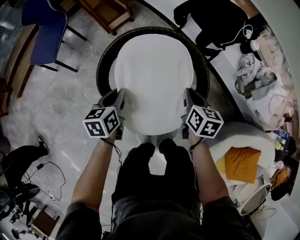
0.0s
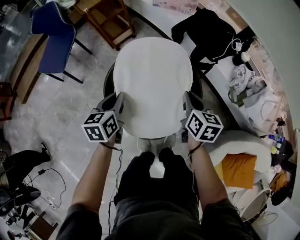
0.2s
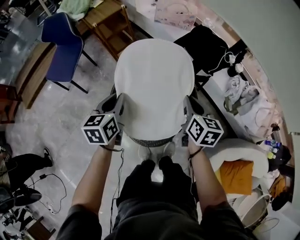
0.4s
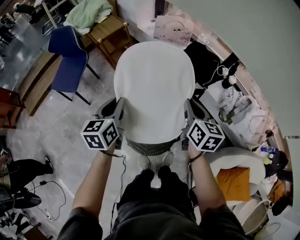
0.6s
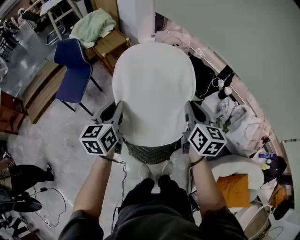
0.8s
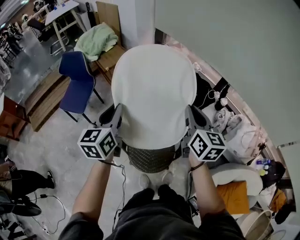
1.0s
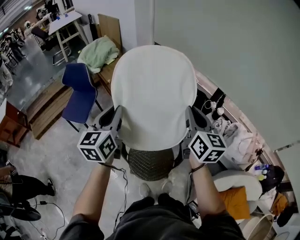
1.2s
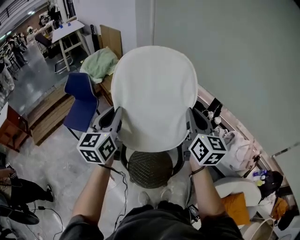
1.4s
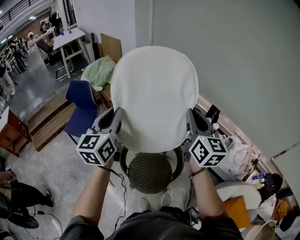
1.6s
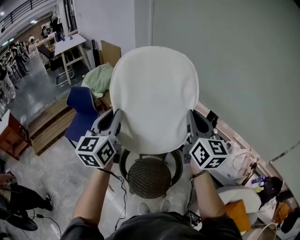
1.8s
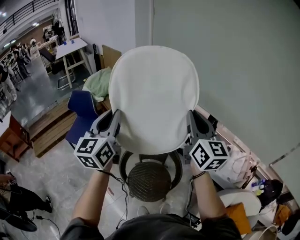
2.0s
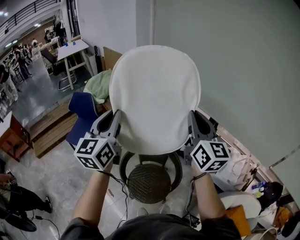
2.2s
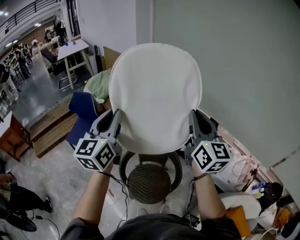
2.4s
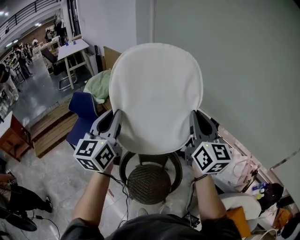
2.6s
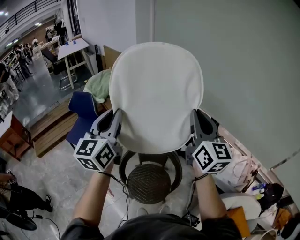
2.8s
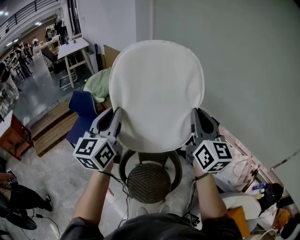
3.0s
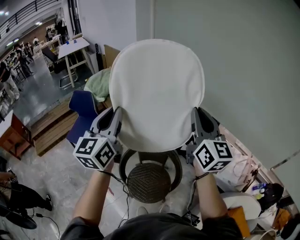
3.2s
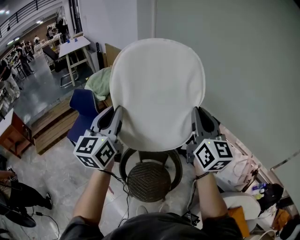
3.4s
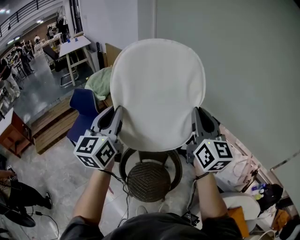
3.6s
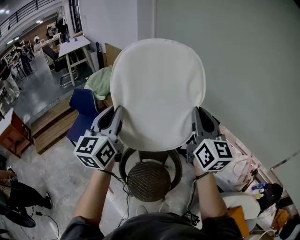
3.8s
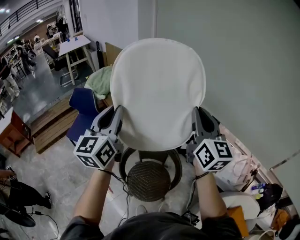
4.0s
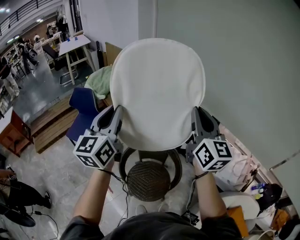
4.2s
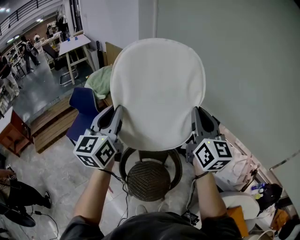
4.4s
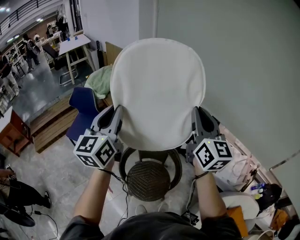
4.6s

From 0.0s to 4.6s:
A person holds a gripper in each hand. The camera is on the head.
From 0.0s to 1.6s: Both grippers travel together upward, some 60 cm. The left gripper tilts its fingers approximately 40 degrees upward. The right gripper angles its fingers upward, by approximately 40 degrees.
From 1.6s to 3.0s: The grippers both shift upward by some 10 cm.
From 3.0s to 4.6s: Both grippers stay about where they are.

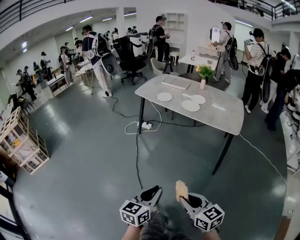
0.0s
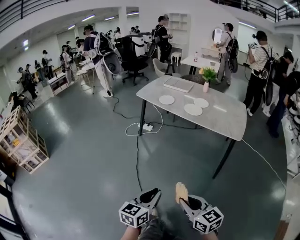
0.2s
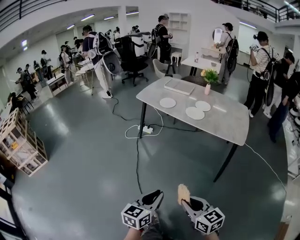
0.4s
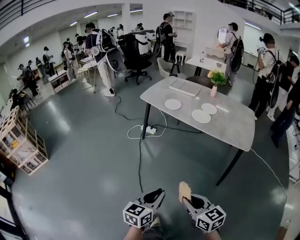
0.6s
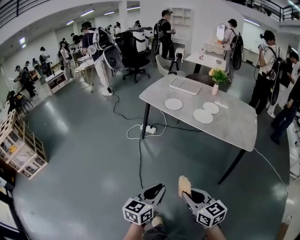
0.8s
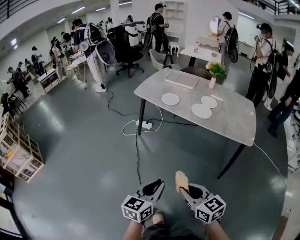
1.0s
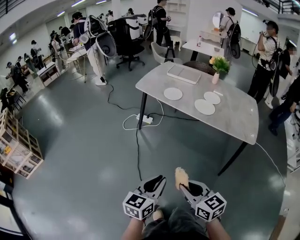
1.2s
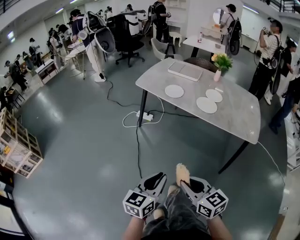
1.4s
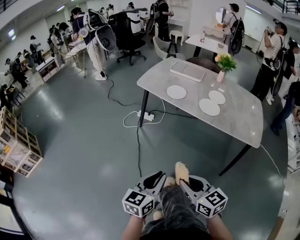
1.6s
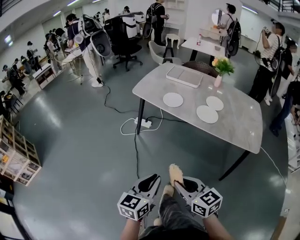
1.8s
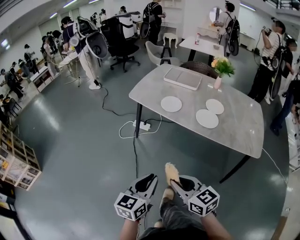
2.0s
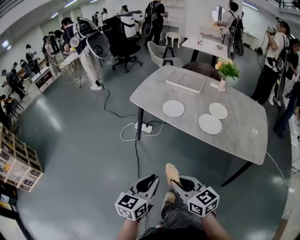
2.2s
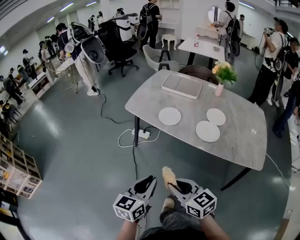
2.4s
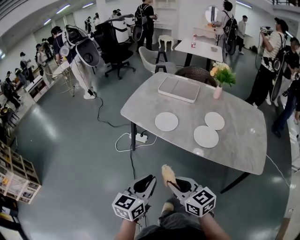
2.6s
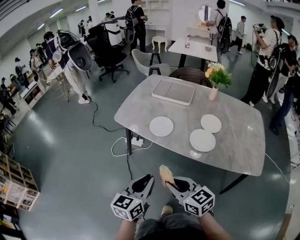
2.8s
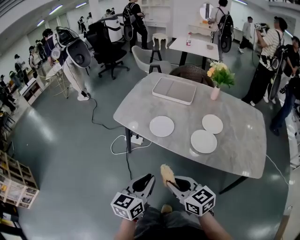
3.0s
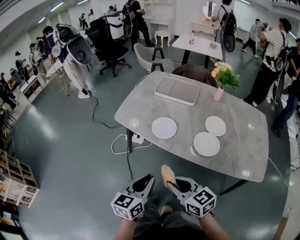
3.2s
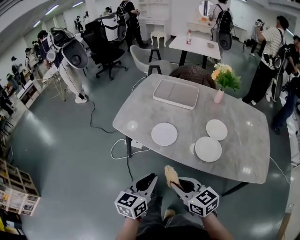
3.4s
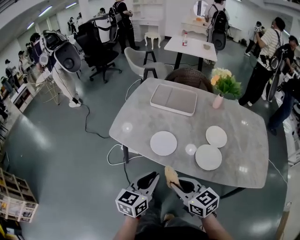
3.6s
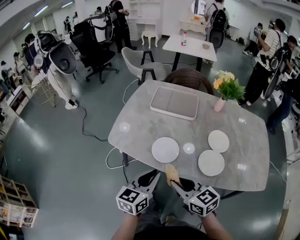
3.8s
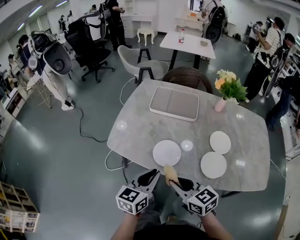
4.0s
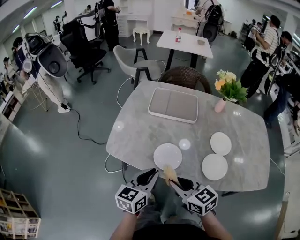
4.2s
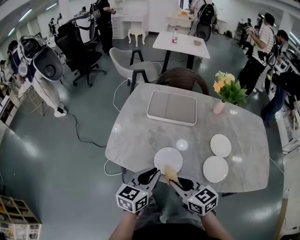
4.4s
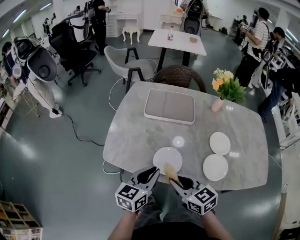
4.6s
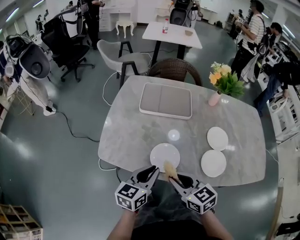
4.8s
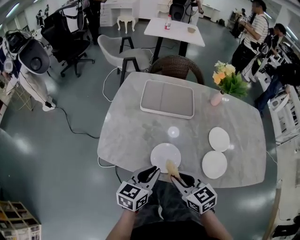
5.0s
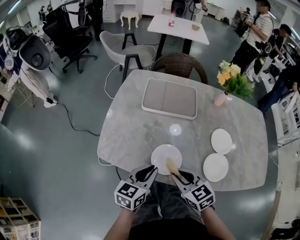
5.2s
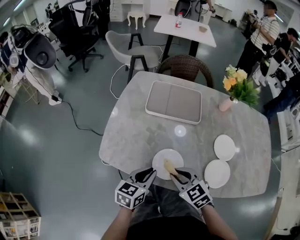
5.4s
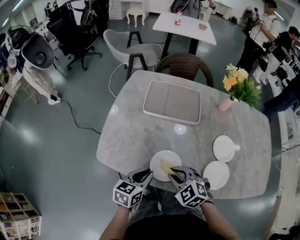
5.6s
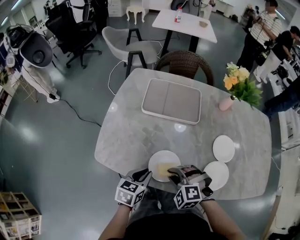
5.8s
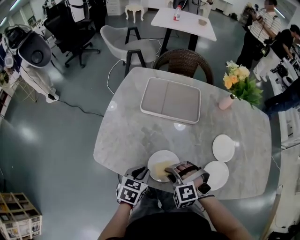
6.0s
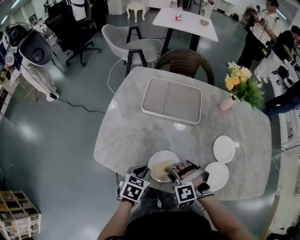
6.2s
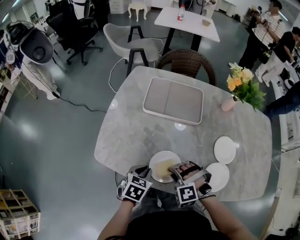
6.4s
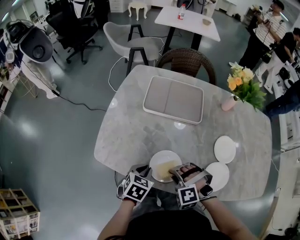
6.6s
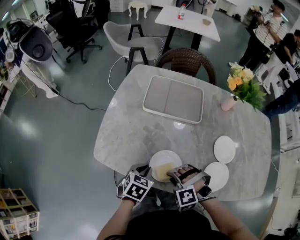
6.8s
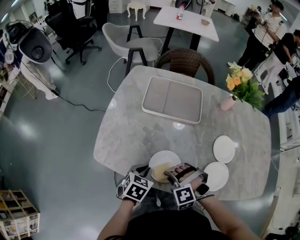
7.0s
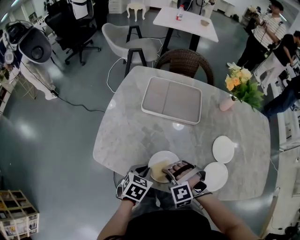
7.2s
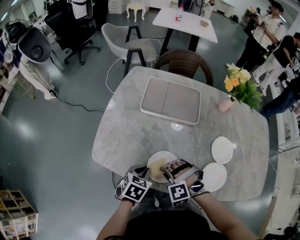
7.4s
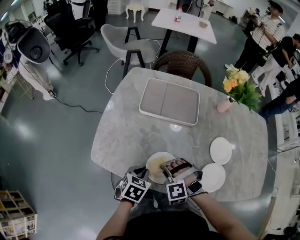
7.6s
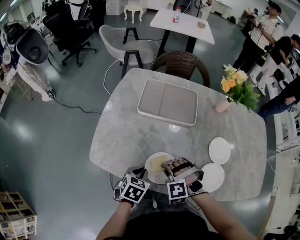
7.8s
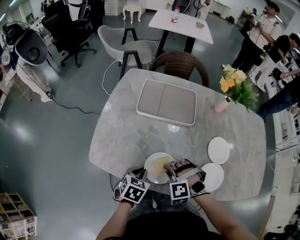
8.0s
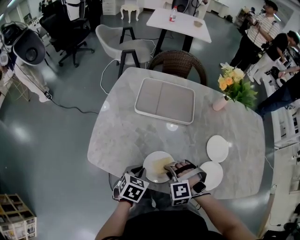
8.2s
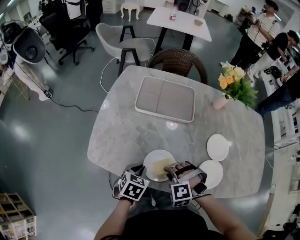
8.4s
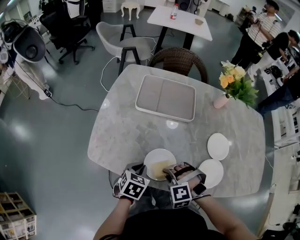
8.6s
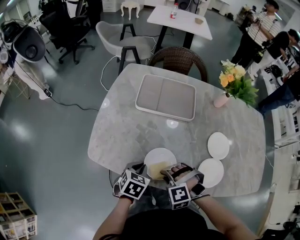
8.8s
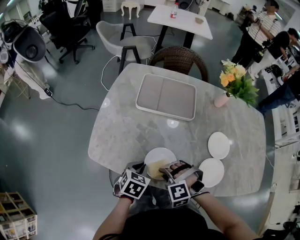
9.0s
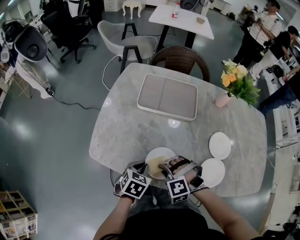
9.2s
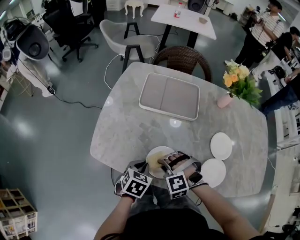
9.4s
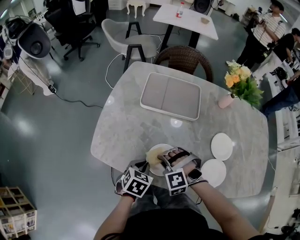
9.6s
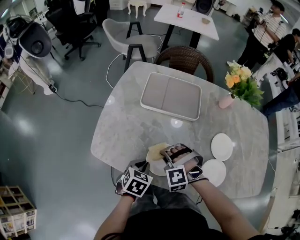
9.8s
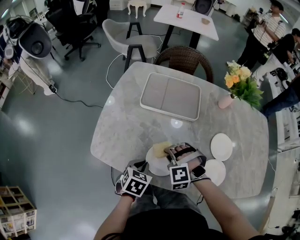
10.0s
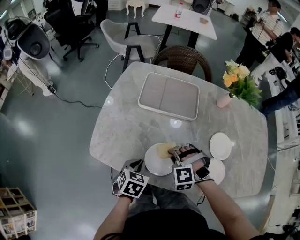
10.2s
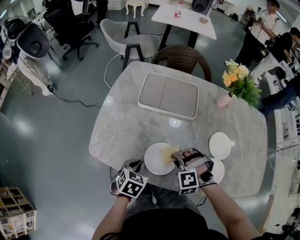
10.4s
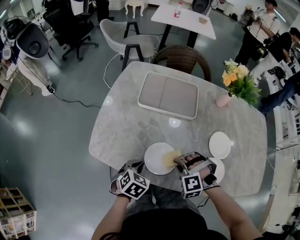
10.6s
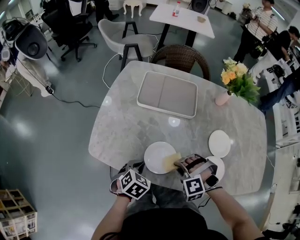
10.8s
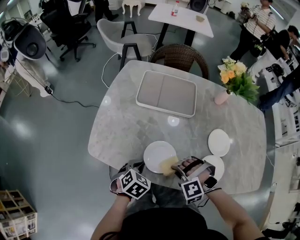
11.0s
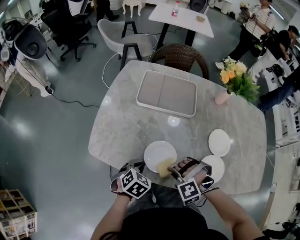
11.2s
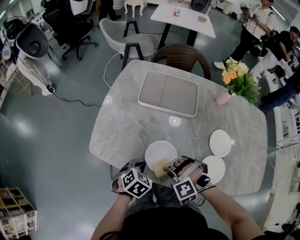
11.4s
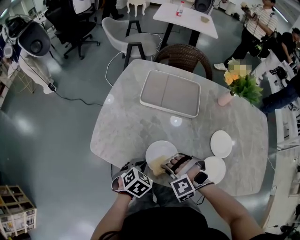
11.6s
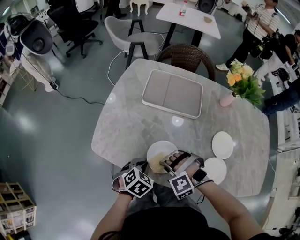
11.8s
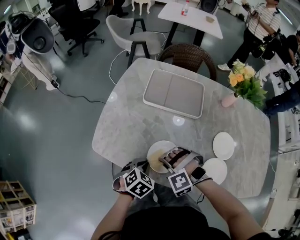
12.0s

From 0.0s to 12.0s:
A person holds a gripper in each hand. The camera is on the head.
From 0.0s to 1.6s: Both grippers travel together forward, roughly 30 cm.
From 1.6s to 3.0s: Both grippers move forward, roughly 30 cm.
From 3.0s to 4.4s: Both grippers move forward, roughly 25 cm.
From 4.4s to 6.0s: The two grippers go some 15 cm downward and forward. The right gripper rotates around the line of its fingers by approximately 70 degrees, counterclockwise from behind; the left gripper points its fingers about 30 degrees further downward.
From 6.0s to 9.0s: The grippers make only small movements.
From 9.0s to 10.4s: The right gripper travels forward by about 5 cm.
From 10.4s to 12.0s: The right gripper is displaced to the left by approximately 5 cm, and changes its angle by approximately 20 degrees.

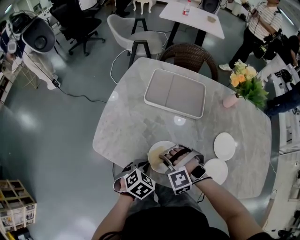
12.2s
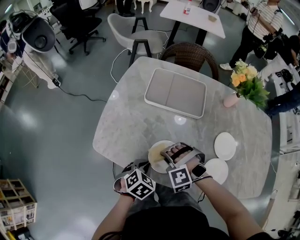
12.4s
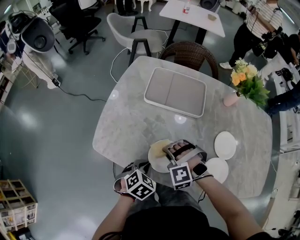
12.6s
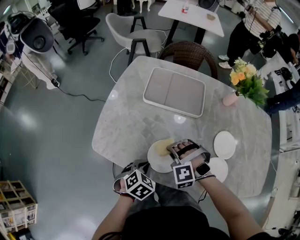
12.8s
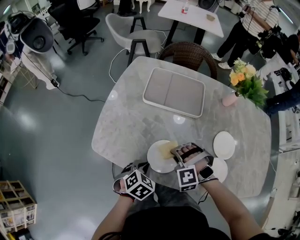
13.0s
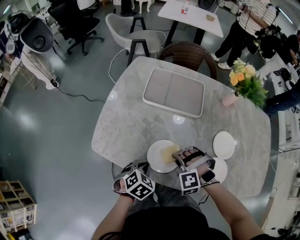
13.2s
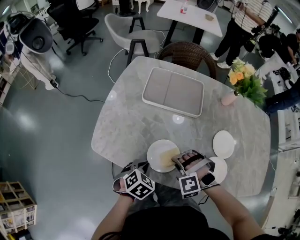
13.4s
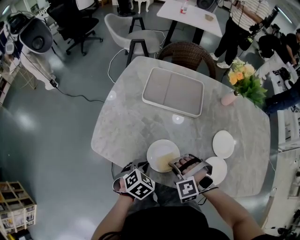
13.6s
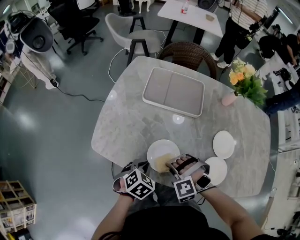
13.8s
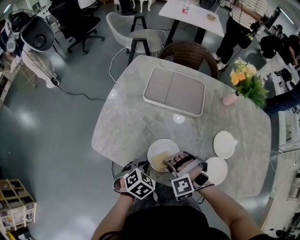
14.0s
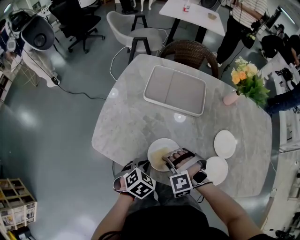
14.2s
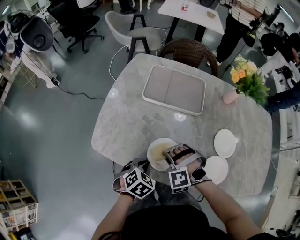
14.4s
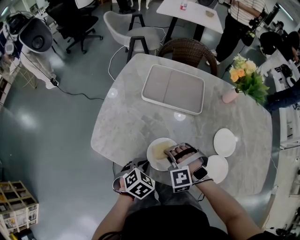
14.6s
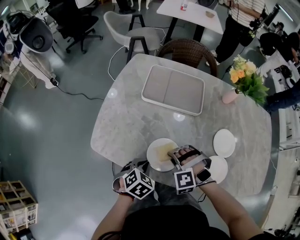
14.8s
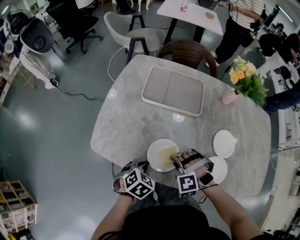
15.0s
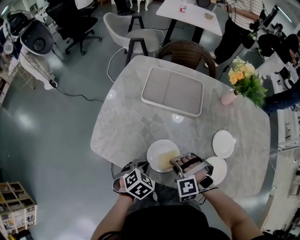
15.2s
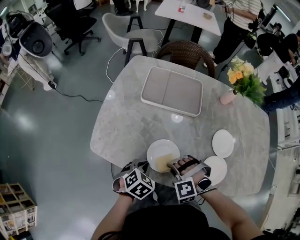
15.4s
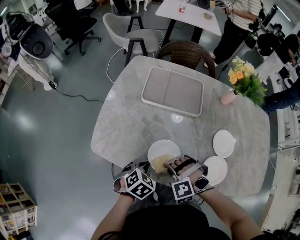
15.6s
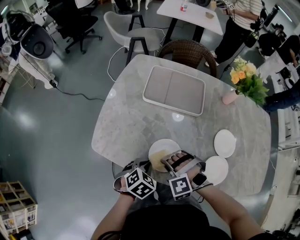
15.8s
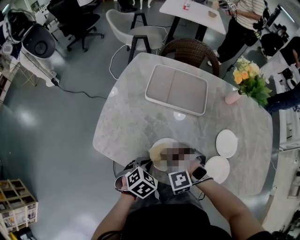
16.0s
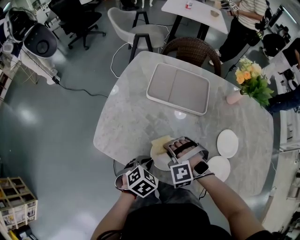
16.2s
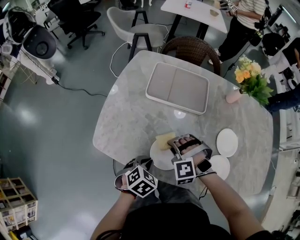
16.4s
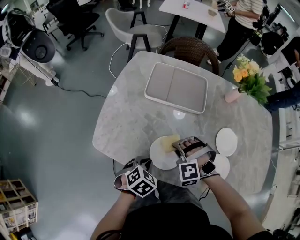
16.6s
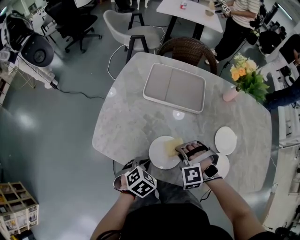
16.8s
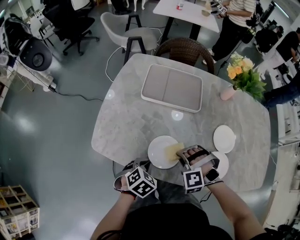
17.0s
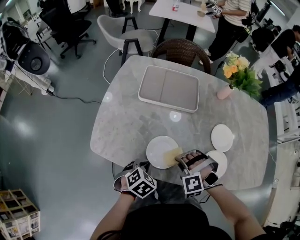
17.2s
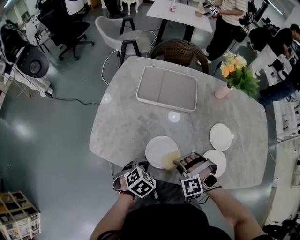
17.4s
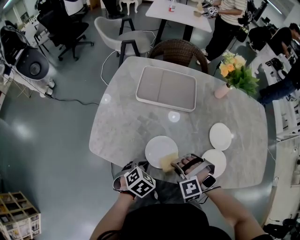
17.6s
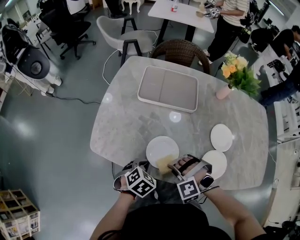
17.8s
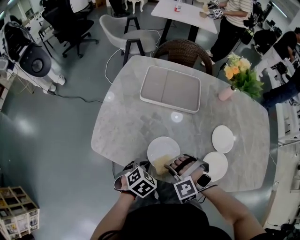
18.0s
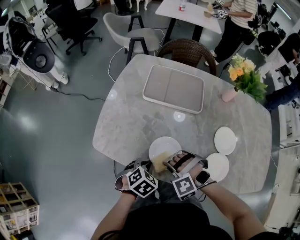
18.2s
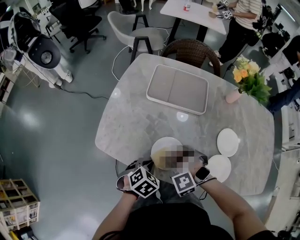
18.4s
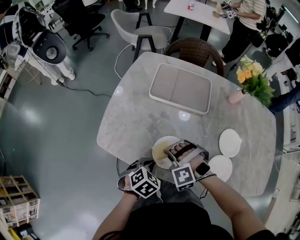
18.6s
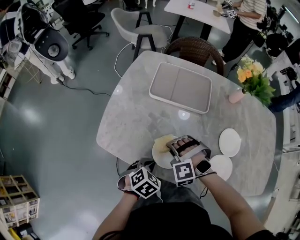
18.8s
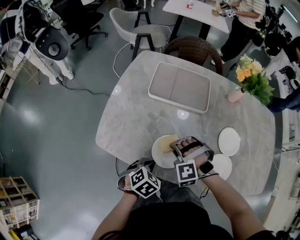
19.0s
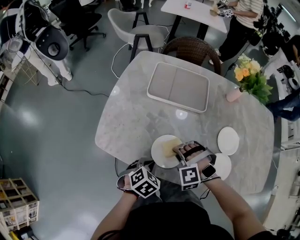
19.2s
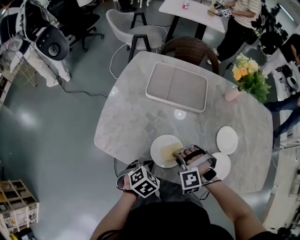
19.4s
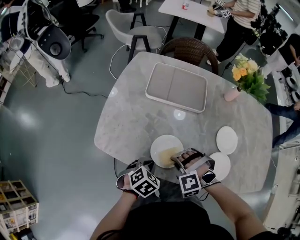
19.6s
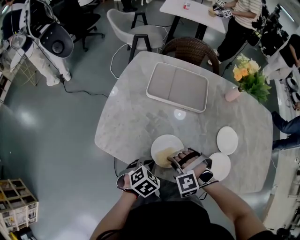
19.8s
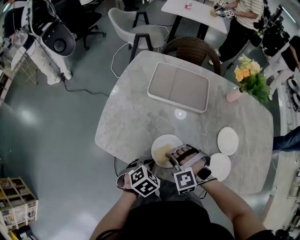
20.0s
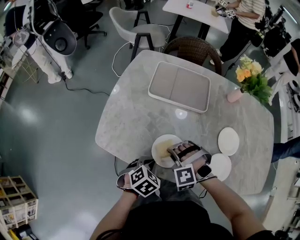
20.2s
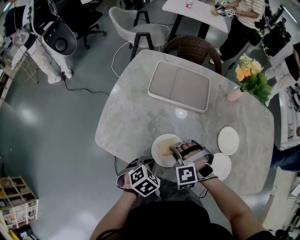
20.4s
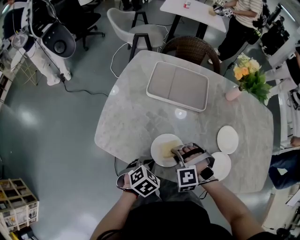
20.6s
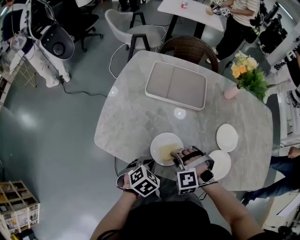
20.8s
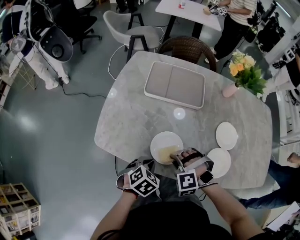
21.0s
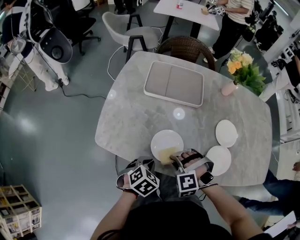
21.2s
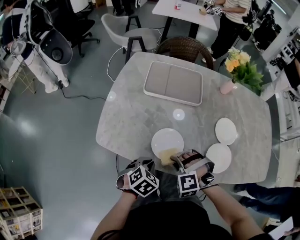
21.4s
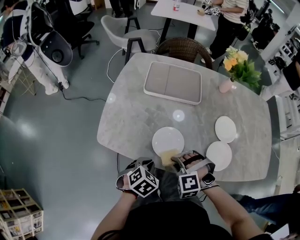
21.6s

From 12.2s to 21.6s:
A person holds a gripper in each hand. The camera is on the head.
From 12.2s to 13.8s: The right gripper changes place by some 5 cm.
From 13.8s to 15.4s: The grippers make only small movements.
From 17.0s to 18.4s: The right gripper shifts roughly 5 cm to the left.
From 18.4s to 20.0s: There are only small adjustments of the grippers.
From 20.0s to 21.6s: The right gripper moves backward, roughly 5 cm.
